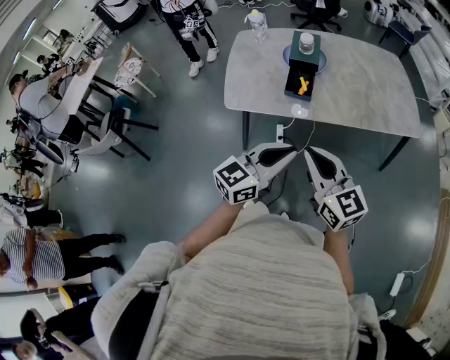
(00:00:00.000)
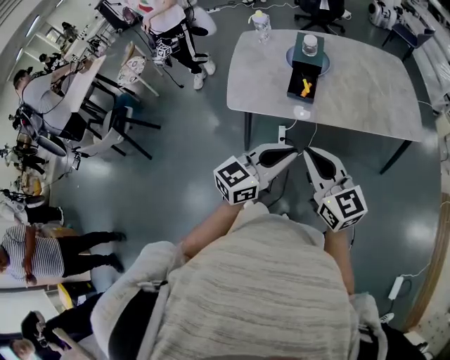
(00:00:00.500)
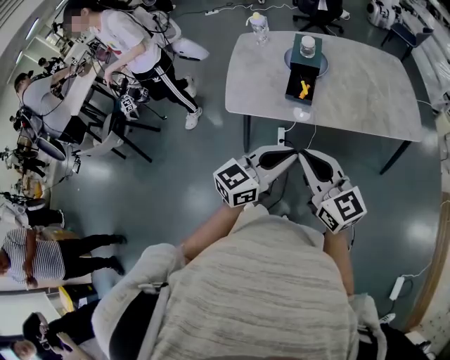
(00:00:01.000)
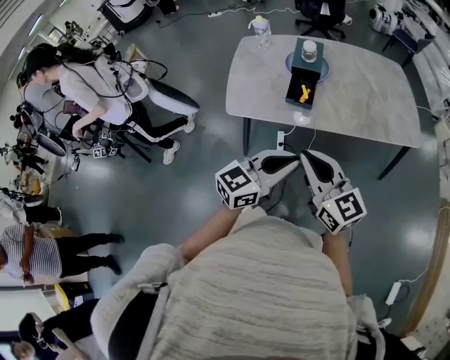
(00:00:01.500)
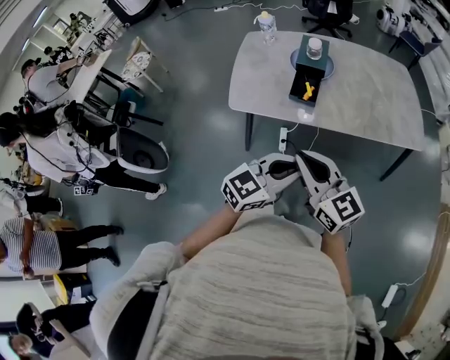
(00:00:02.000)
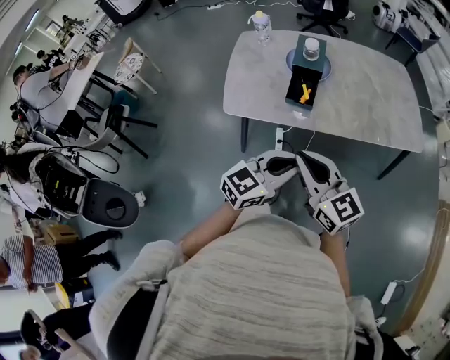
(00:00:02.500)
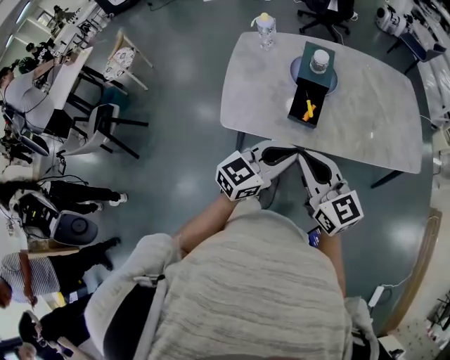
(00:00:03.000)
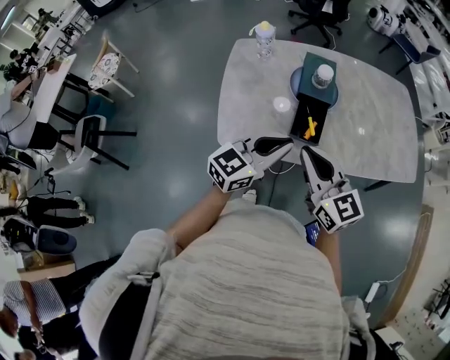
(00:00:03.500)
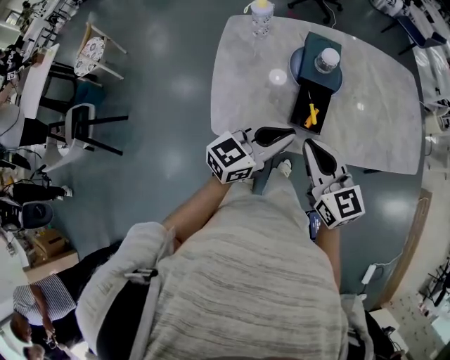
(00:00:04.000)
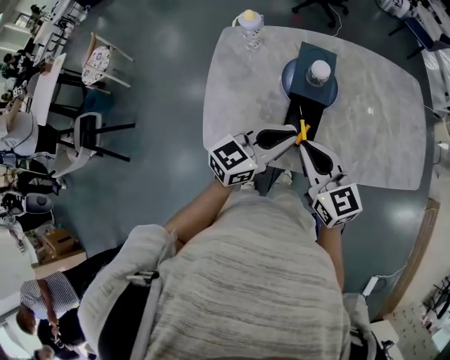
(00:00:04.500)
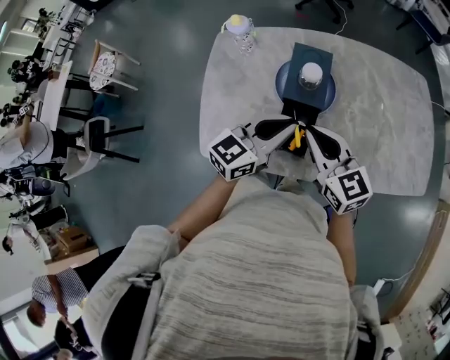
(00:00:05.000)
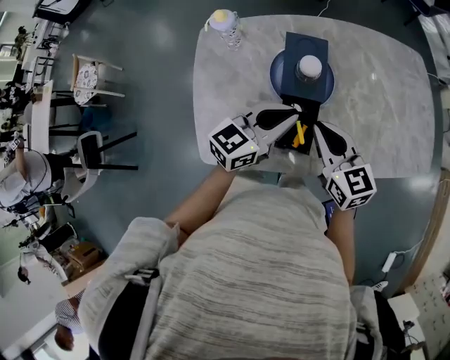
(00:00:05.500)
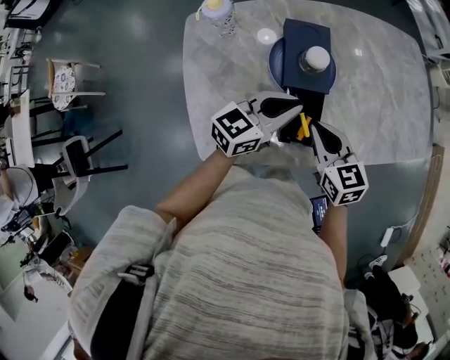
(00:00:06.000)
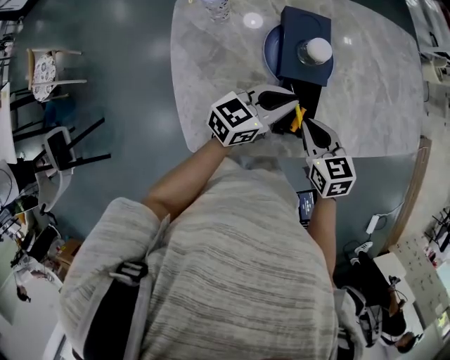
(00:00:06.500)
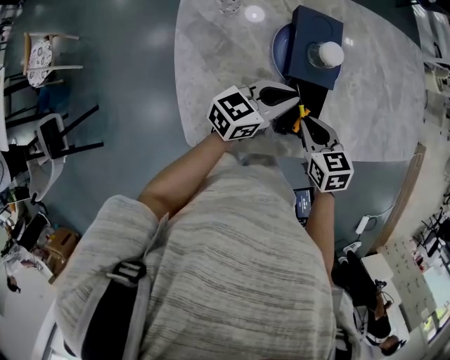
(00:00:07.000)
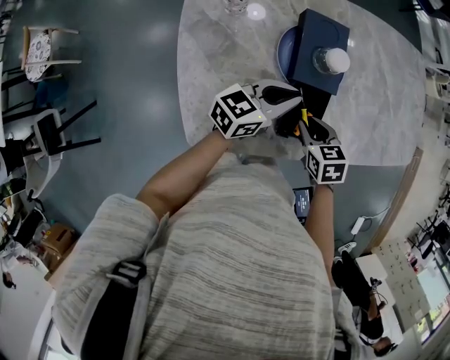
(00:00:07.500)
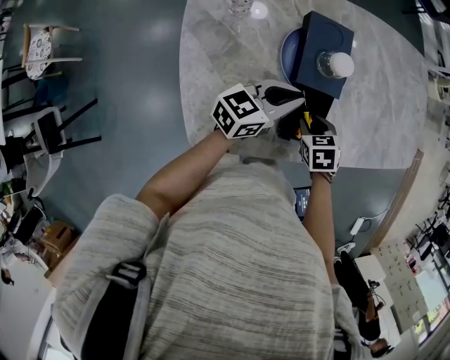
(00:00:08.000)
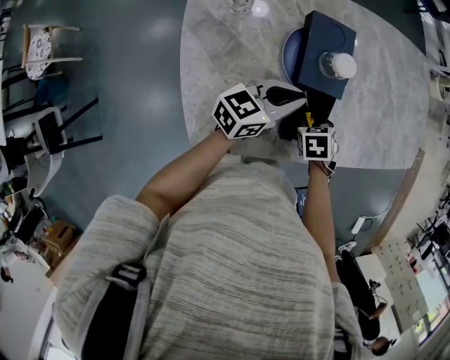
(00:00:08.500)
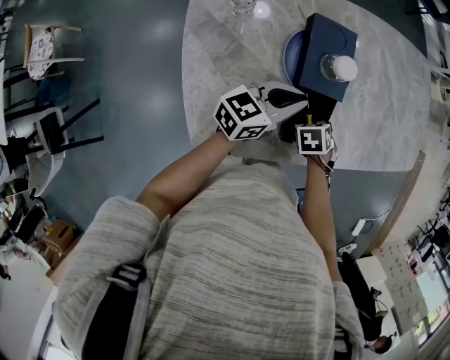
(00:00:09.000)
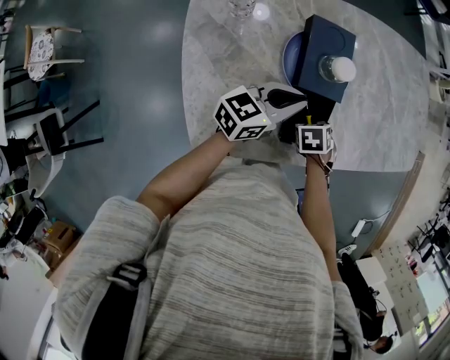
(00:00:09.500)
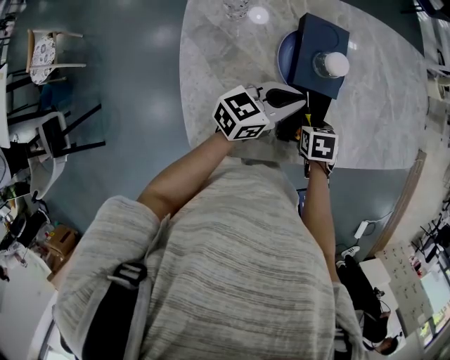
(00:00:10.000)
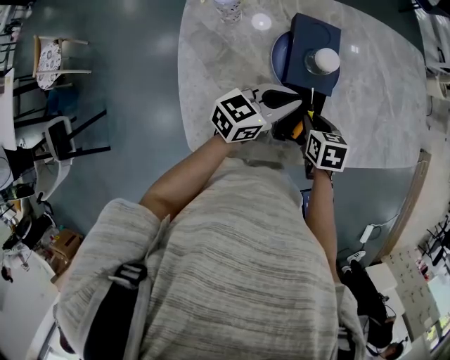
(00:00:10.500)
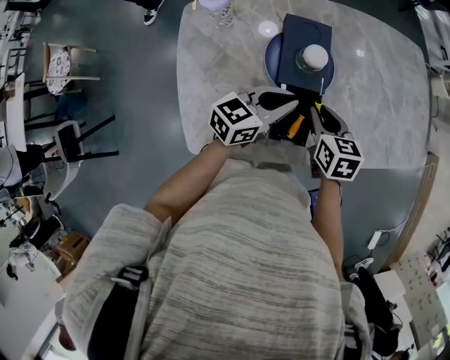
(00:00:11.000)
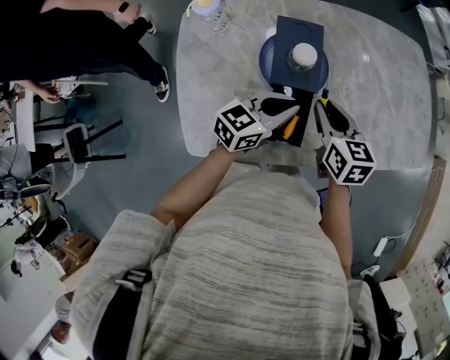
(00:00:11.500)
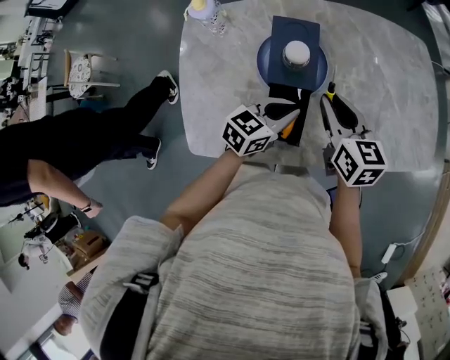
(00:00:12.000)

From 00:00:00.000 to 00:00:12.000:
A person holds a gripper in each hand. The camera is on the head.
From 00:00:00.000 to 00:00:02.000: There are only small adjustments of the grippers.
From 00:00:02.000 to 00:00:04.000: The left gripper goes approximately 35 cm forward and to the left. The right gripper shifts some 30 cm forward.
From 00:00:04.000 to 00:00:06.000: The right gripper is displaced forward and downward by approximately 20 cm, and swivels roughly 20 degrees. The left gripper is displaced forward by about 20 cm.
From 00:00:06.000 to 00:00:08.000: The left gripper goes about 5 cm downward. The right gripper is displaced downward by some 15 cm, points its fingers some 40 degrees further downward, and opens its fingers.
From 00:00:08.000 to 00:00:10.000: The grippers stay close to where they were, moving slightly.
From 00:00:10.000 to 00:00:12.000: The left gripper moves to the right, approximately 10 cm, while the right gripper goes some 20 cm upward, and points its fingers roughly 50 degrees further upward.

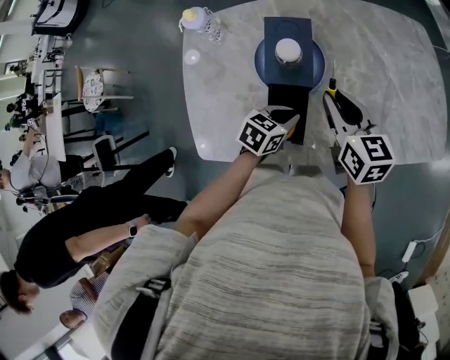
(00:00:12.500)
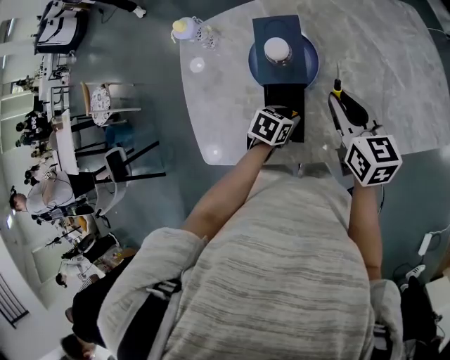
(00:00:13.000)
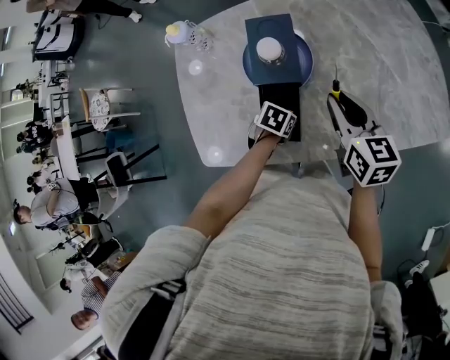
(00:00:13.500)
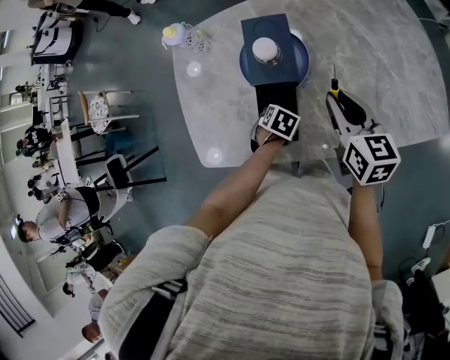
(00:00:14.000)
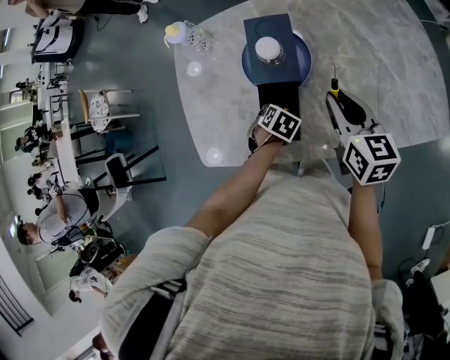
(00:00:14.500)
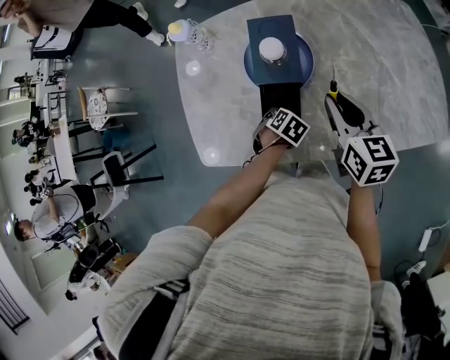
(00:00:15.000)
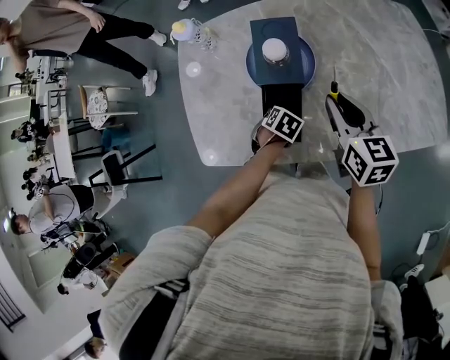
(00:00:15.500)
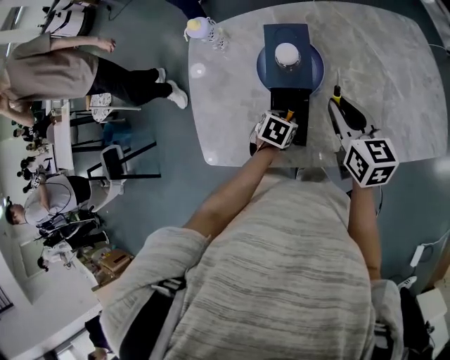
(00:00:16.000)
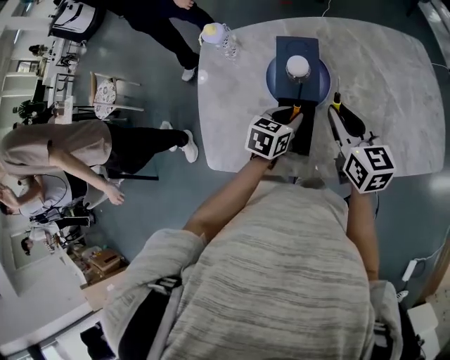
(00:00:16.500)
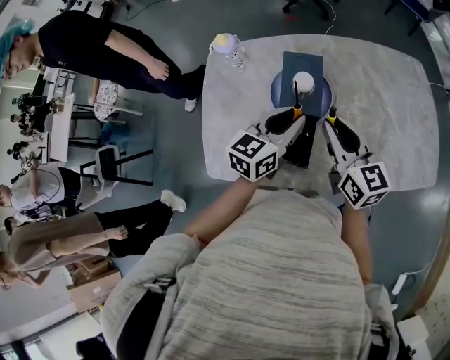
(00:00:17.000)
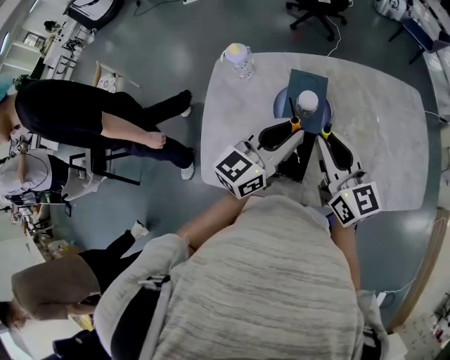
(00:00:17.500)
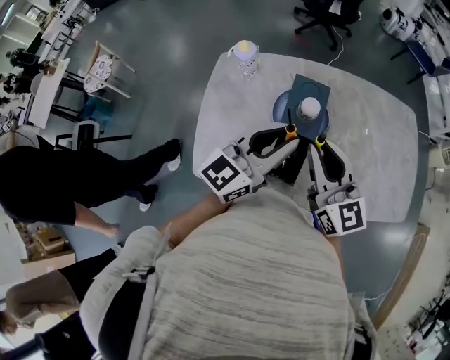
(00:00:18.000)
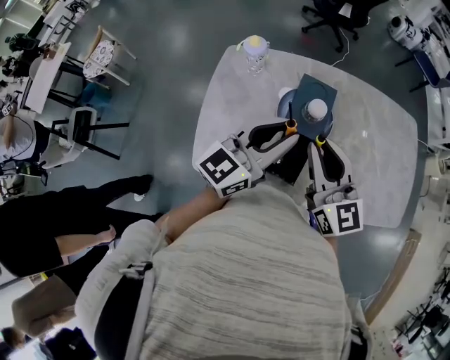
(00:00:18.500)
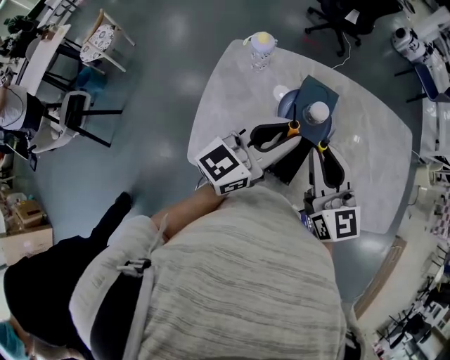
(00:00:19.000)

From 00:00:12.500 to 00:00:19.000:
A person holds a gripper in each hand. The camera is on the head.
From 00:00:12.500 to 00:00:14.500: The left gripper goes about 10 cm downward, tips its fingers downward by roughly 30 degrees, and opens up; the right gripper shifts by about 5 cm.
From 00:00:14.500 to 00:00:17.000: The right gripper shifts by approximately 10 cm. Meanwhile the left gripper shifts roughly 30 cm upward, and points its fingers some 60 degrees further upward.
From 00:00:17.000 to 00:00:19.000: The right gripper is displaced to the left and upward by about 10 cm, while the left gripper is displaced upward and to the left by about 15 cm, and rotates about 20 degrees.

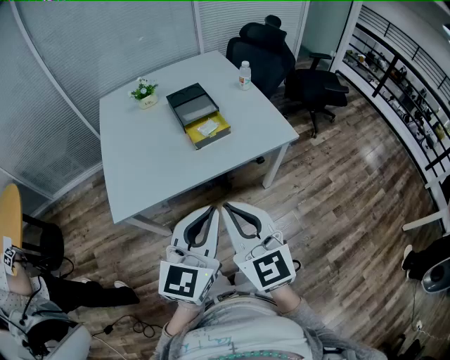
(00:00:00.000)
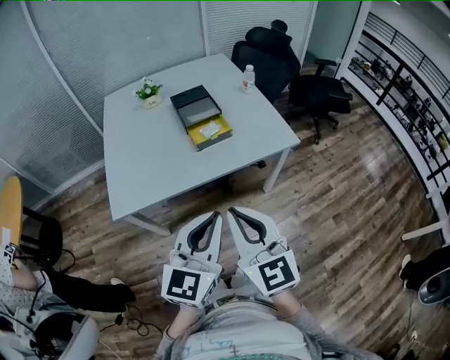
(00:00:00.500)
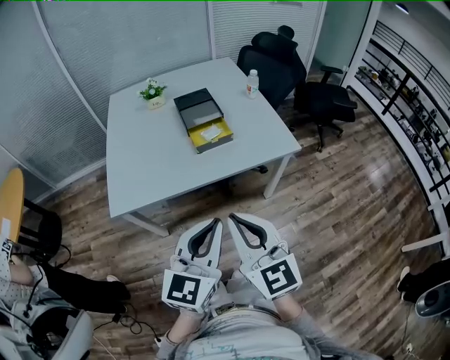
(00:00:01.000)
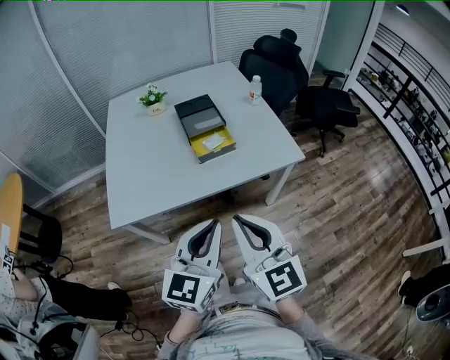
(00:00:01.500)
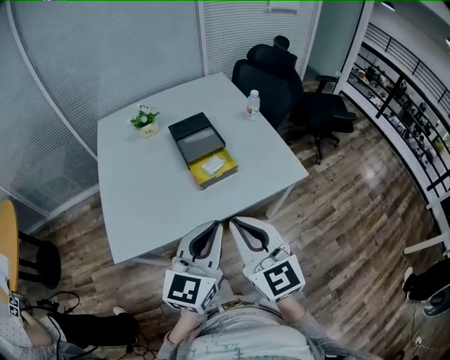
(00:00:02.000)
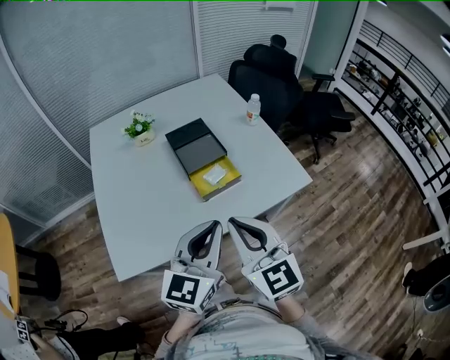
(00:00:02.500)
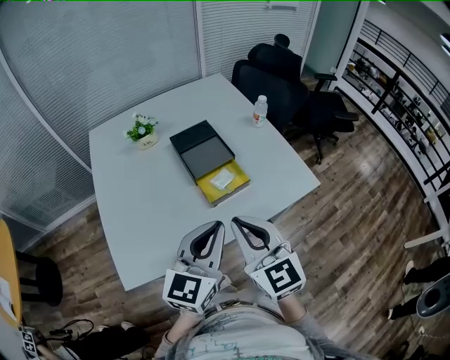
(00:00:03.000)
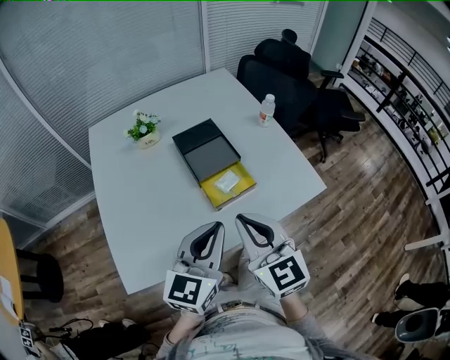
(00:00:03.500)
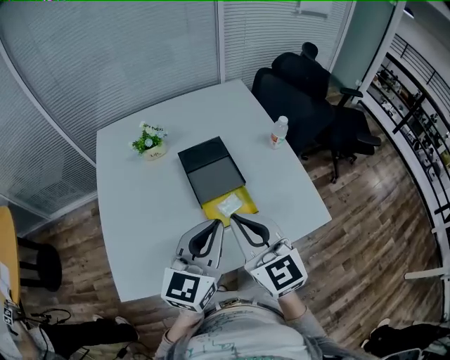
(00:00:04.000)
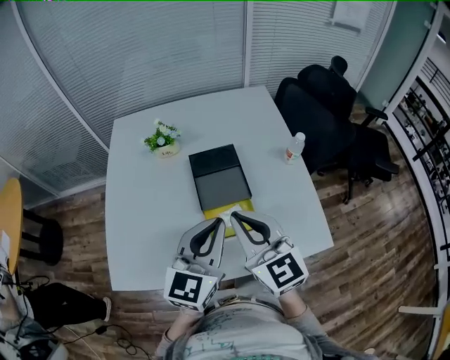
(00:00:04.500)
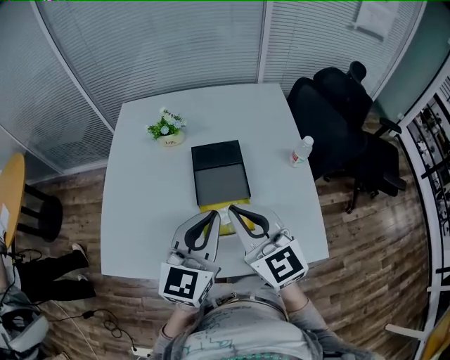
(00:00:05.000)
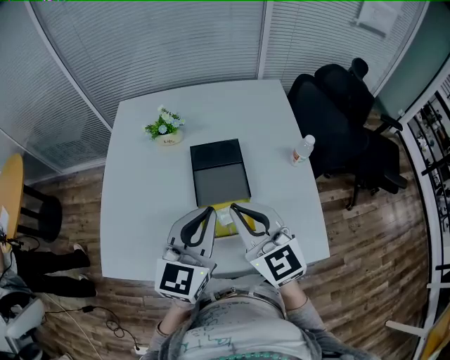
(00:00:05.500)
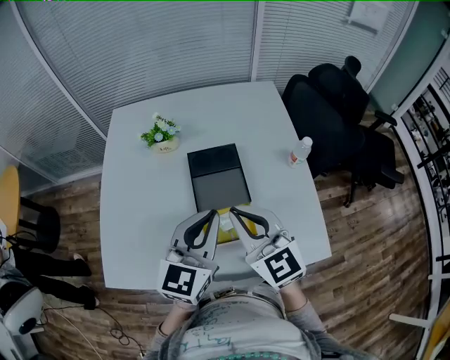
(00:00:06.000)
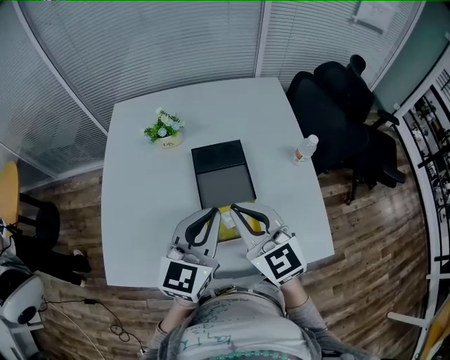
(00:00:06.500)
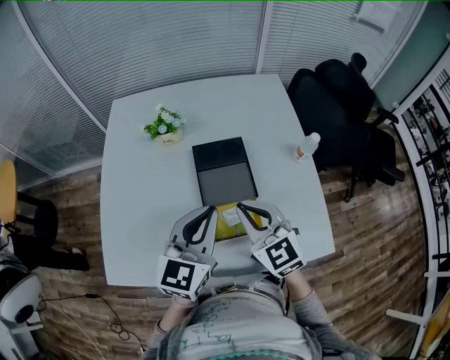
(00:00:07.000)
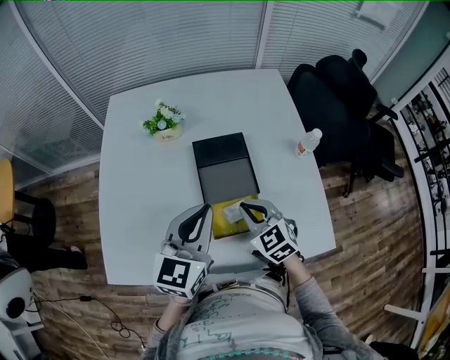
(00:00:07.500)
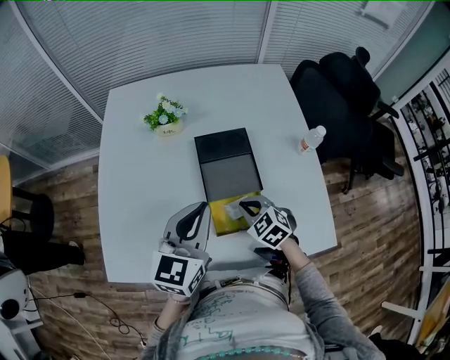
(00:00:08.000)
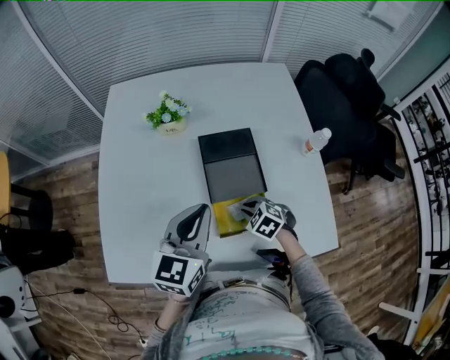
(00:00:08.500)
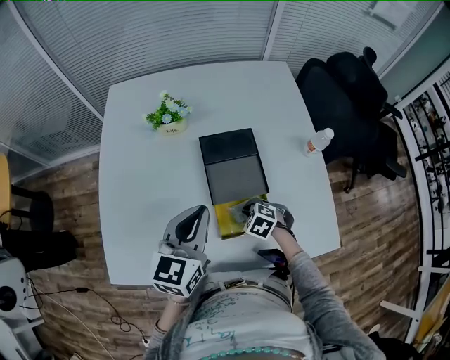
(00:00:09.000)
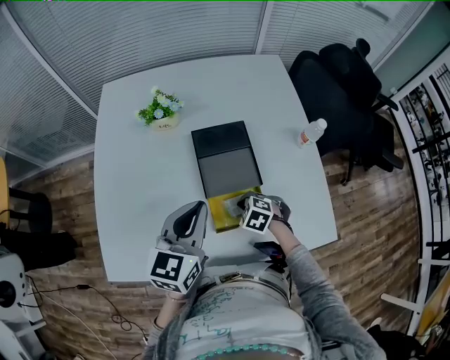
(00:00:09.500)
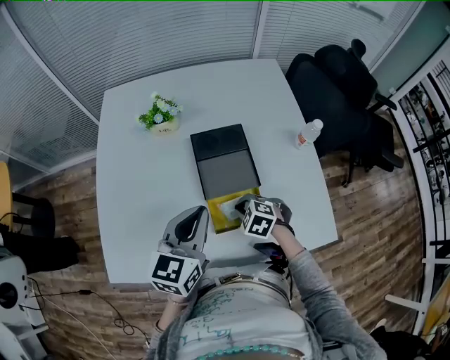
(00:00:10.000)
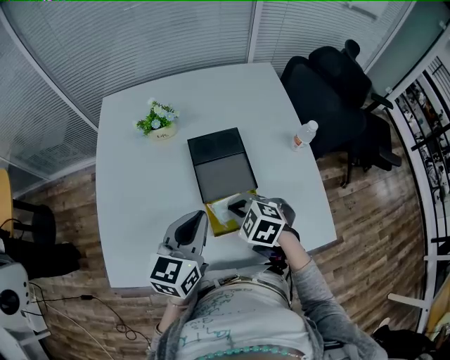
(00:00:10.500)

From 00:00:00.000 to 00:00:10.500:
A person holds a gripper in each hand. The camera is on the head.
From 00:00:00.000 to 00:00:02.000: The grippers both shift forward by roughly 15 cm.
From 00:00:02.000 to 00:00:04.000: The grippers both shift forward by about 25 cm.
From 00:00:04.000 to 00:00:06.500: Both grippers travel together forward, approximately 10 cm.
From 00:00:06.500 to 00:00:08.500: The right gripper goes some 30 cm downward, and angles its fingers downward, by some 50 degrees. The left gripper is displaced to the left and downward by some 10 cm.
From 00:00:08.500 to 00:00:10.500: The right gripper moves upward, about 10 cm.
